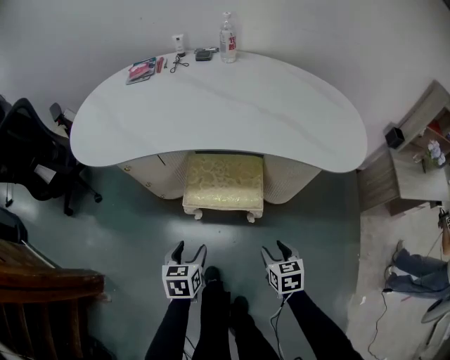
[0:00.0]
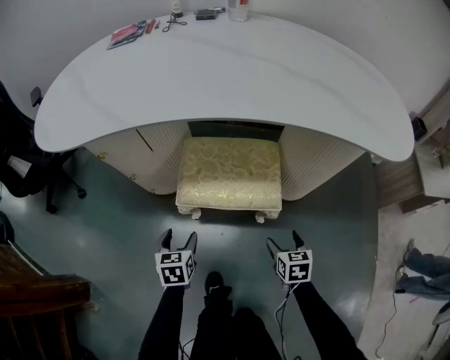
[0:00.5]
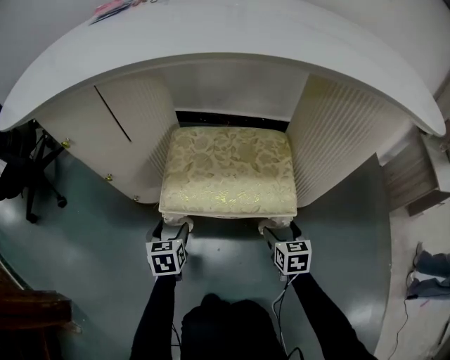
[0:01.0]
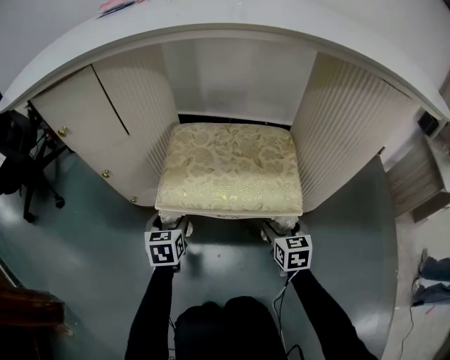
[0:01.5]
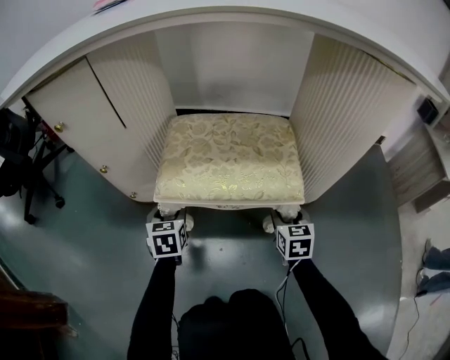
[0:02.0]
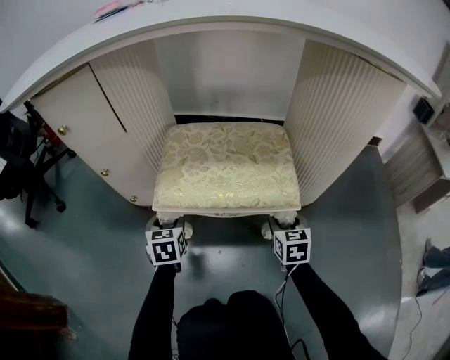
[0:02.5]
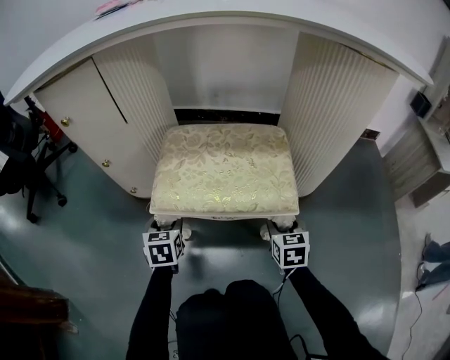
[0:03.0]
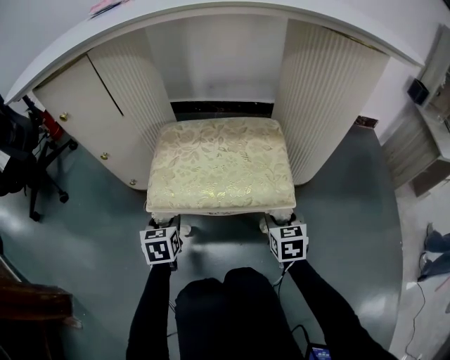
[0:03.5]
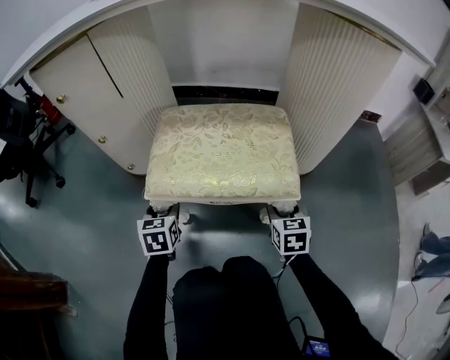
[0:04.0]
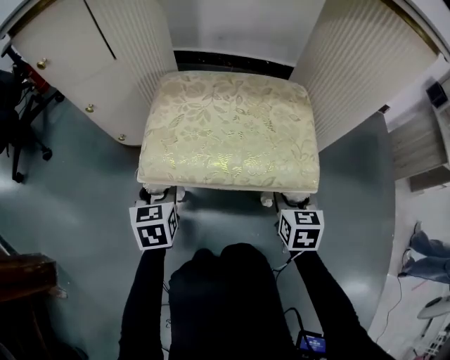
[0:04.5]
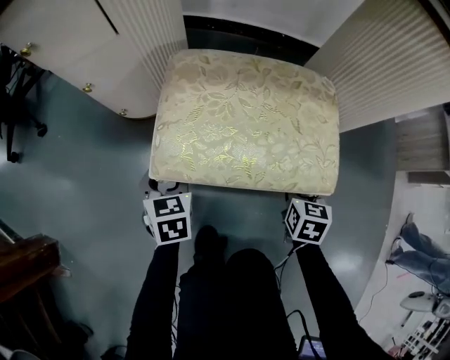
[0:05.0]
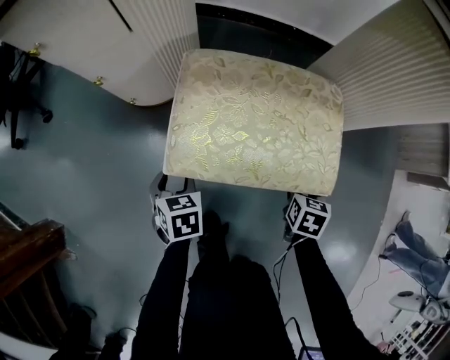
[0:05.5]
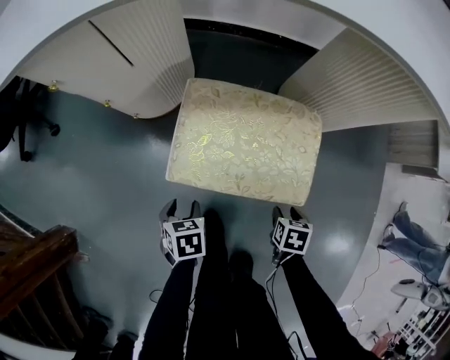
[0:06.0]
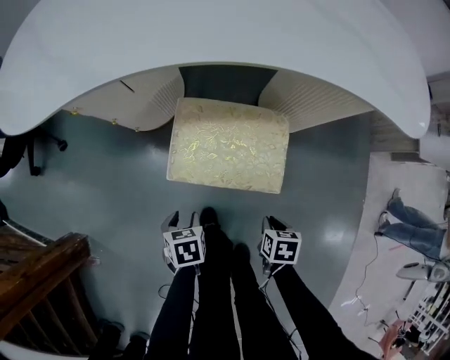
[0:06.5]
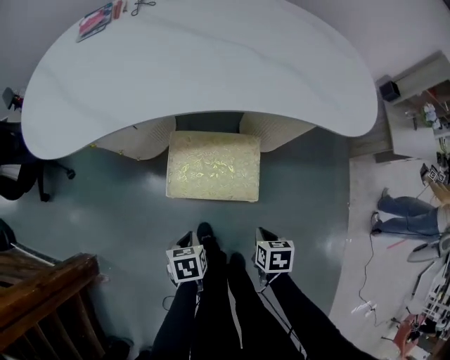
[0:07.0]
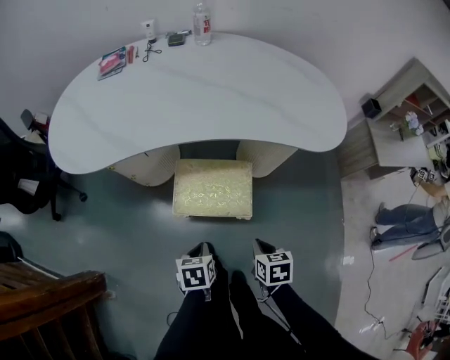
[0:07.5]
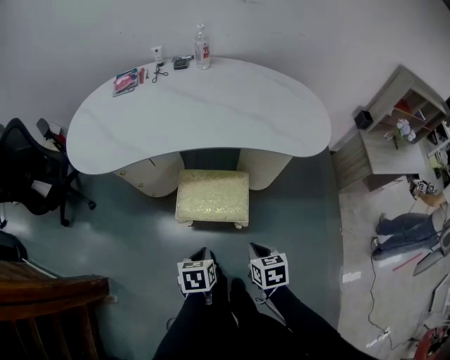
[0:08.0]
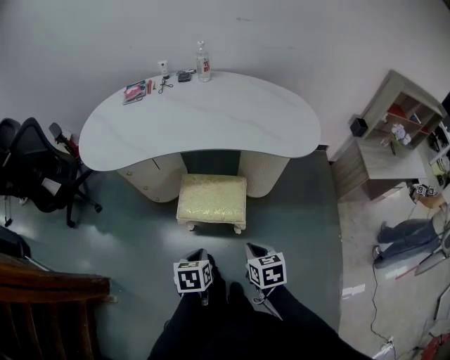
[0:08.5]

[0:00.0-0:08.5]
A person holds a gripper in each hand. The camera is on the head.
0:00.0 to 0:02.0: Both grippers move downward and forward, approximately 40 cm. The right gripper opens, then closes again.
0:02.0 to 0:04.0: The grippers move only a little.
0:04.0 to 0:06.5: The right gripper changes place by approximately 20 cm, tips its fingers downward by about 40 degrees, and closes up, while the left gripper moves upward, approximately 15 cm, and points its fingers some 30 degrees further downward.
0:06.5 to 0:08.5: The two grippers go roughly 35 cm upward. The right gripper changes its angle by some 30 degrees. The left gripper closes its fingers.

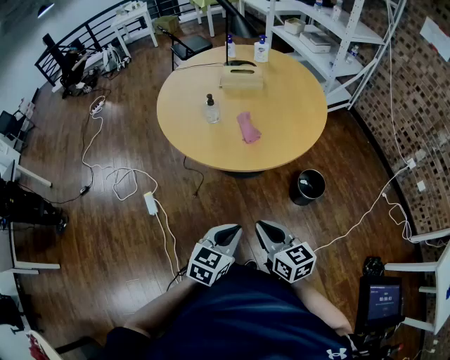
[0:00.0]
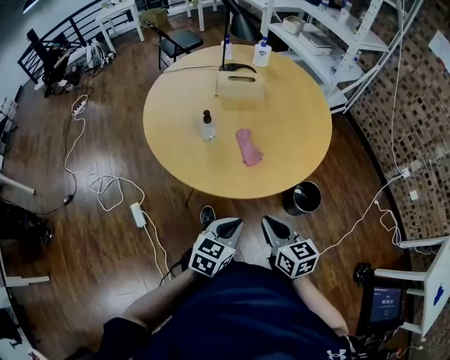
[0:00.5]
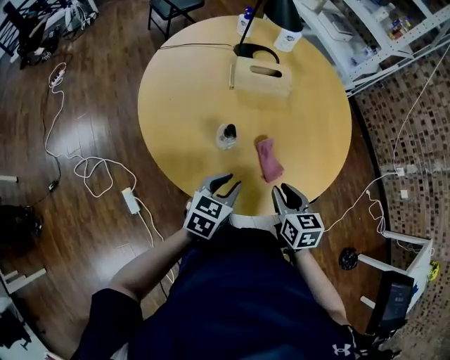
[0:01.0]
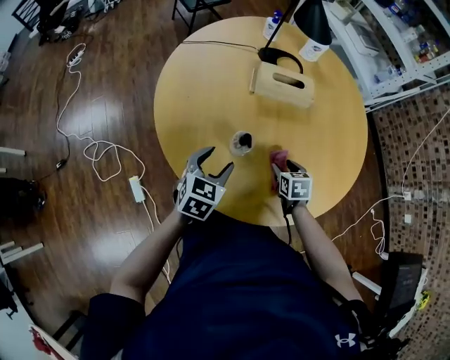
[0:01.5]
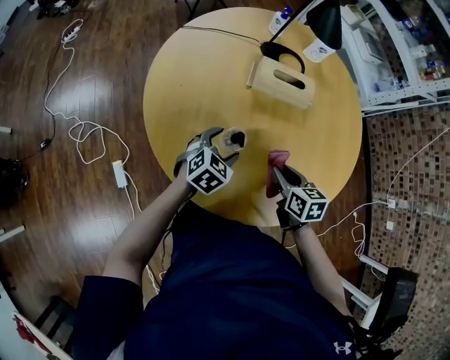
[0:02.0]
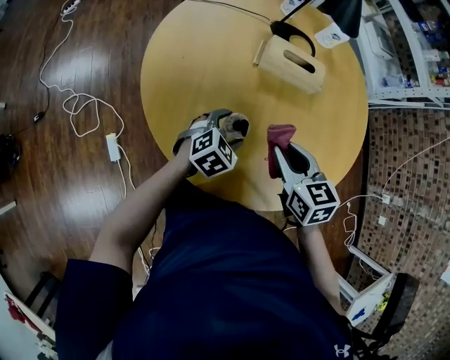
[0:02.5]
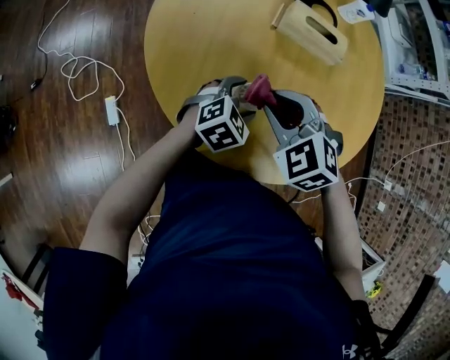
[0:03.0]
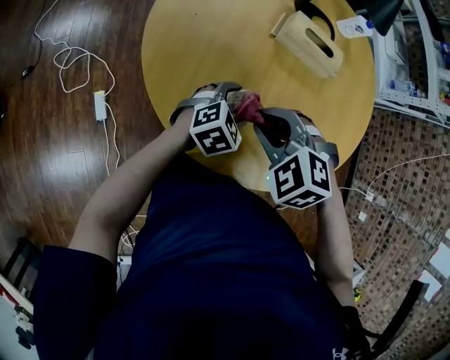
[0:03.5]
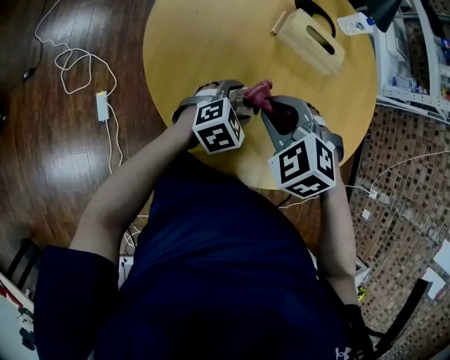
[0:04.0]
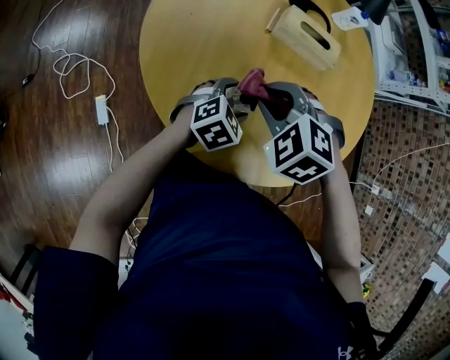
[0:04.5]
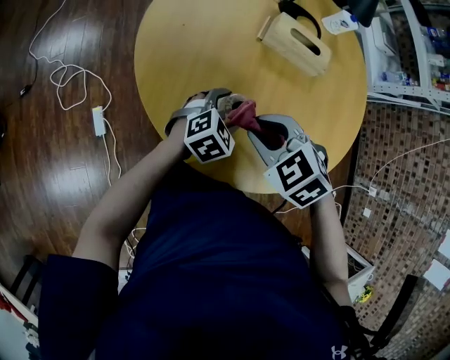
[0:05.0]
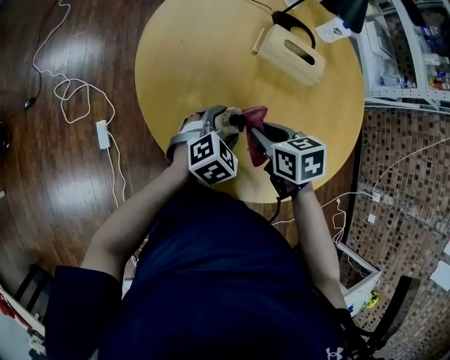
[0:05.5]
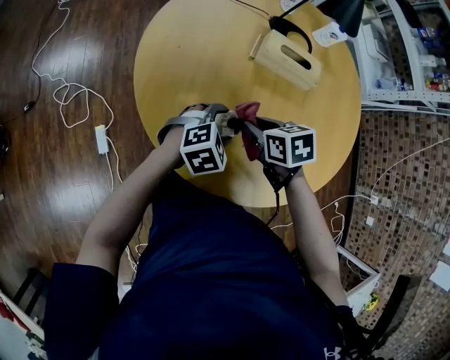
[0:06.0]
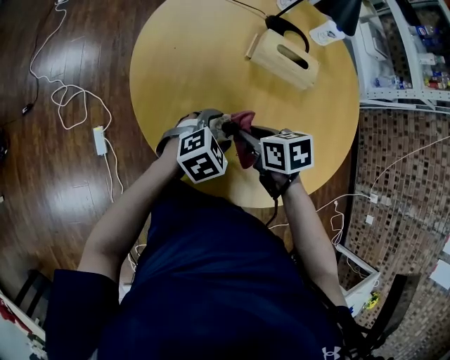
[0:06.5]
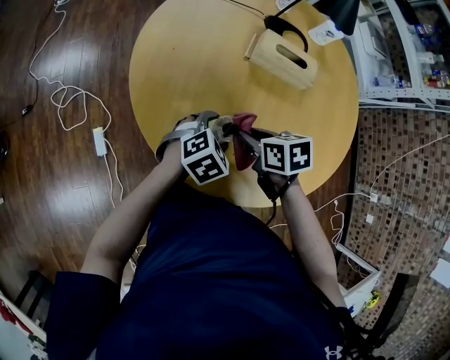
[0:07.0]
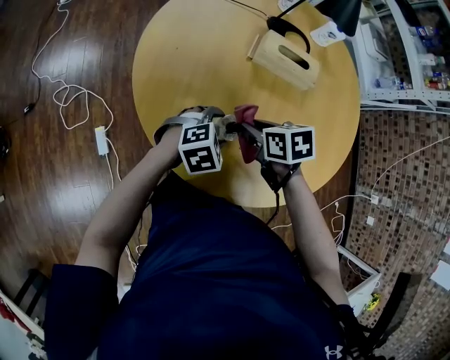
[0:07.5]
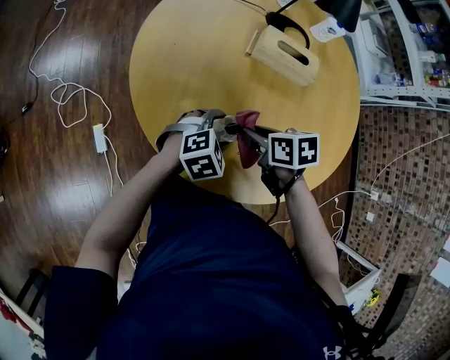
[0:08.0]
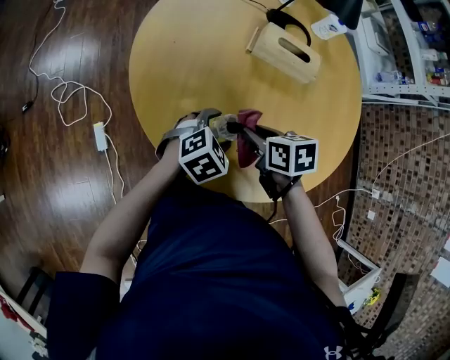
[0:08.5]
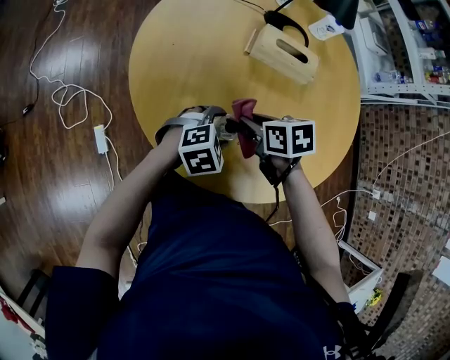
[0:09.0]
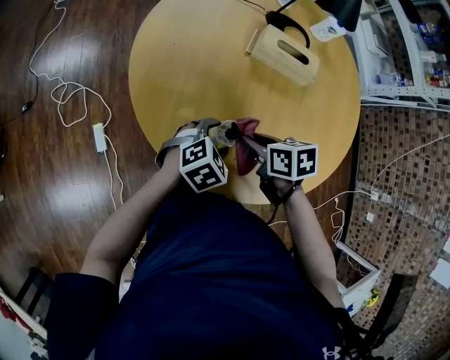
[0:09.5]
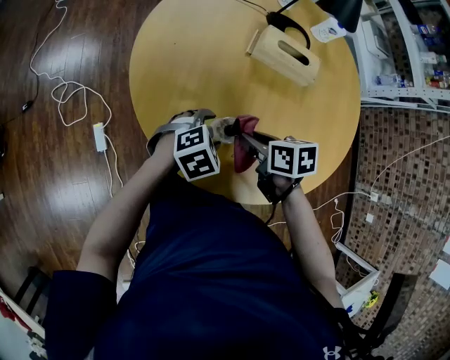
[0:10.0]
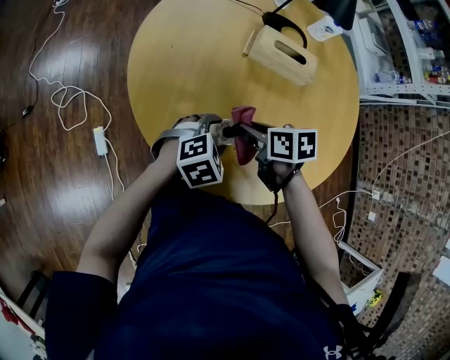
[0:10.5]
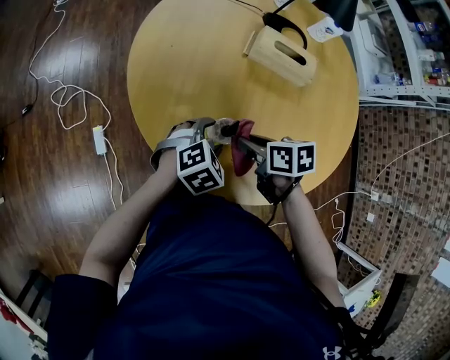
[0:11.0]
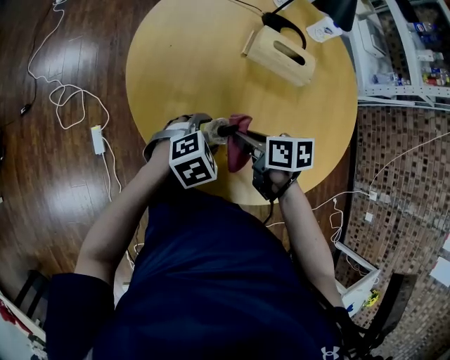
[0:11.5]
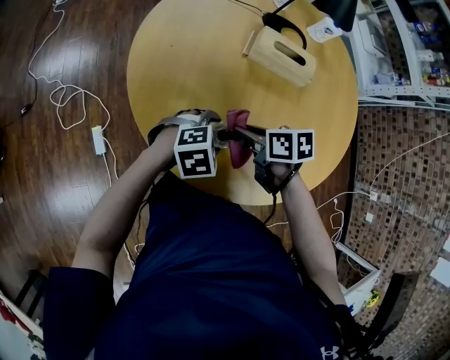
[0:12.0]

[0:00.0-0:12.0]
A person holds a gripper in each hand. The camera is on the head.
0:00.0 to 0:02.0: The two grippers travel together, forward, approximately 40 cm. The right gripper changes its angle by some 30 degrees, and opens and closes again; the left gripper opens.
0:02.0 to 0:04.0: The right gripper travels to the left and upward by about 15 cm, and rotates around the line of its fingers by roughly 80 degrees, counterclockwise from behind.
0:04.0 to 0:06.0: The right gripper heads downward, covering some 5 cm, and rolls clockwise, seen from behind, by about 60 degrees.
0:08.0 to 0:12.0: The grippers make only small movements.

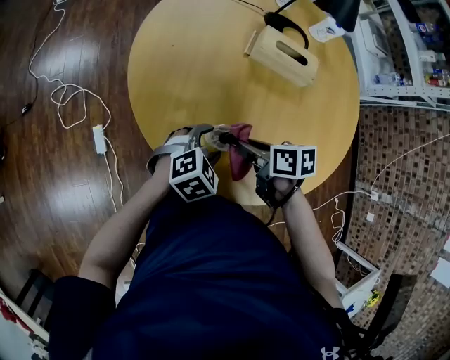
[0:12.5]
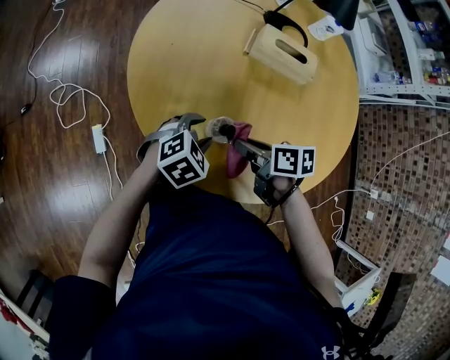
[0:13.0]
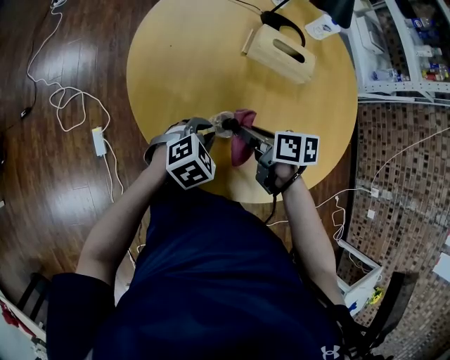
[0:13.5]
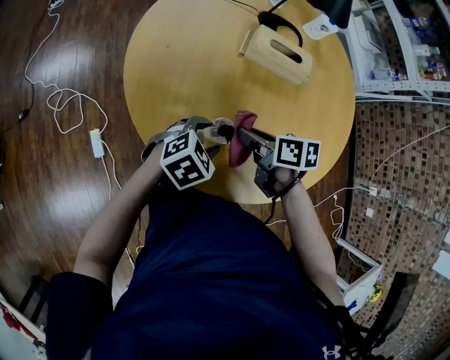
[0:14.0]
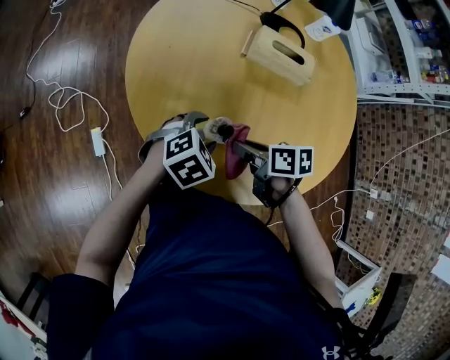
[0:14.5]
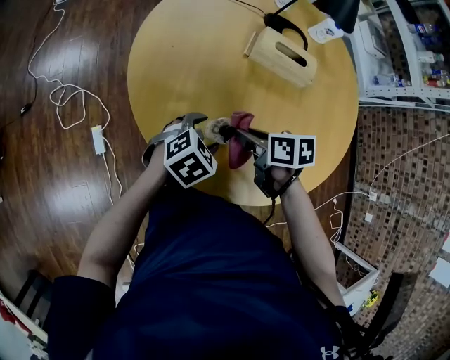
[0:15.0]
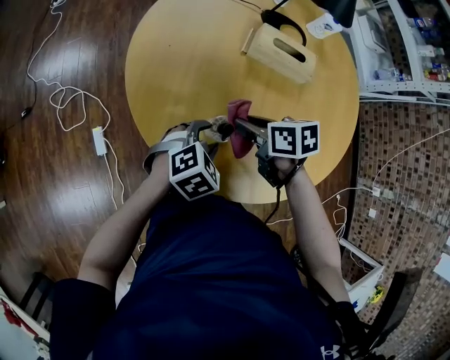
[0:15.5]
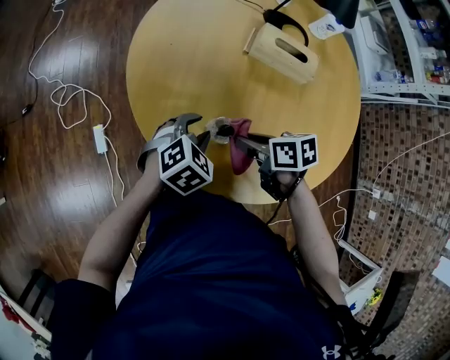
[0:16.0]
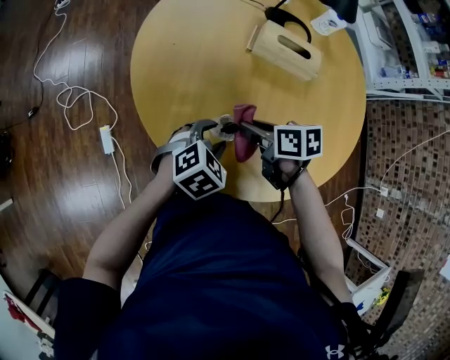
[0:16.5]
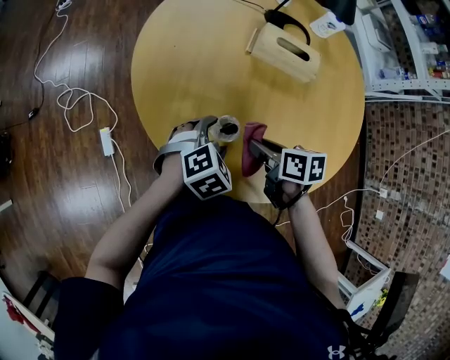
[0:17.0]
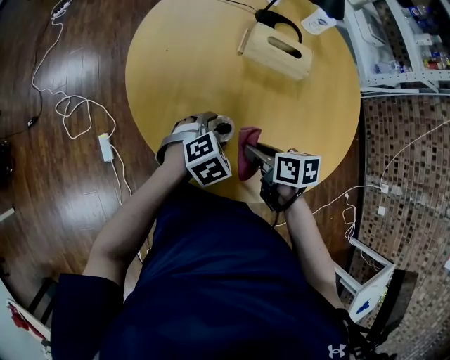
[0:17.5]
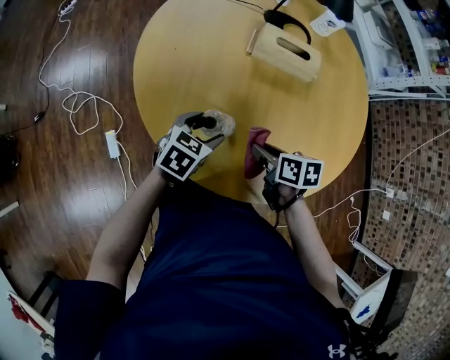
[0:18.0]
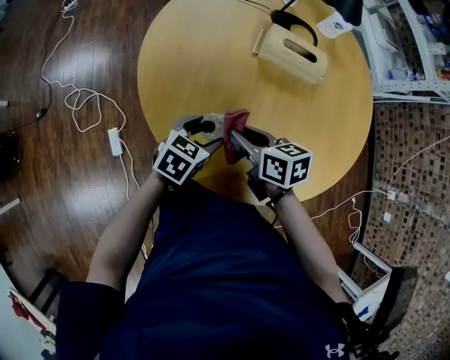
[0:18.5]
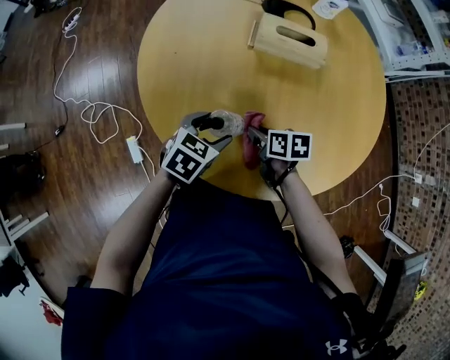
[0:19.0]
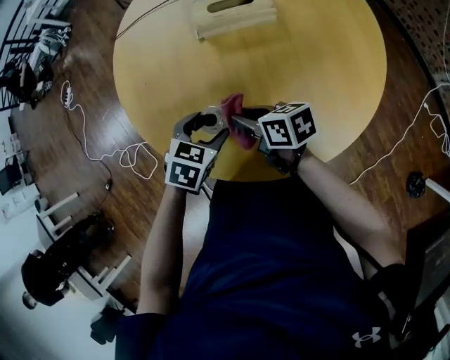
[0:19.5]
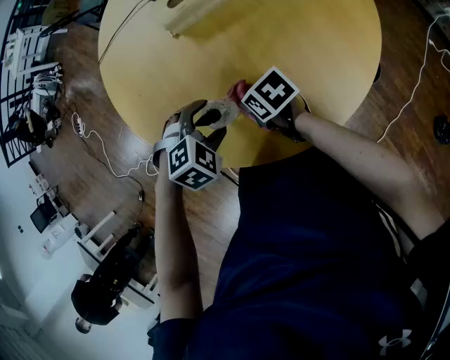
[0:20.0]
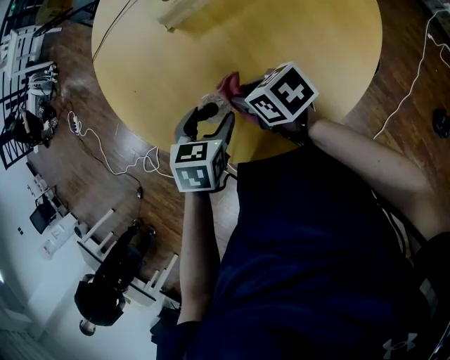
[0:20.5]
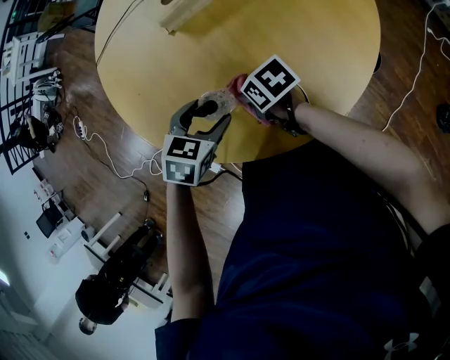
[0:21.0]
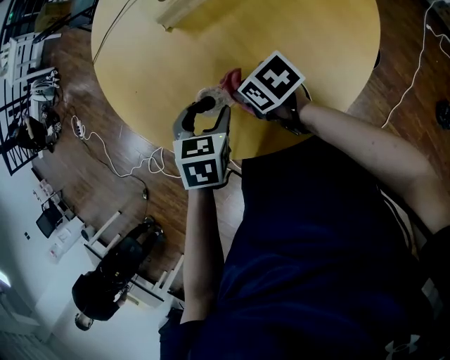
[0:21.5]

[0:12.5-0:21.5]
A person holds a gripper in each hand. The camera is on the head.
0:12.5 to 0:14.5: The left gripper closes, then opens again.
0:17.0 to 0:19.5: The right gripper travels downward and back again, approximately 10 cm each way. Meanwhile the left gripper shifts by about 5 cm.
0:19.5 to 0:21.5: The right gripper swings up and down, some 5 cm each way, with 2 reversals.
